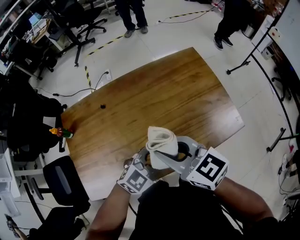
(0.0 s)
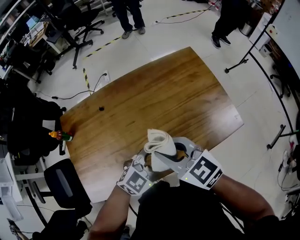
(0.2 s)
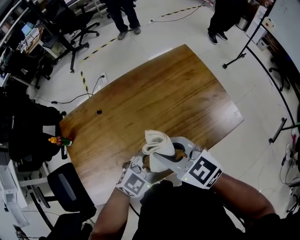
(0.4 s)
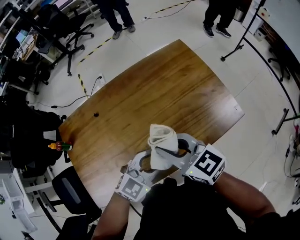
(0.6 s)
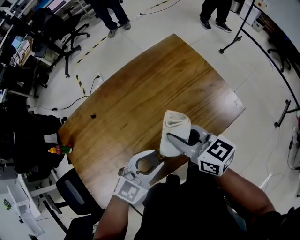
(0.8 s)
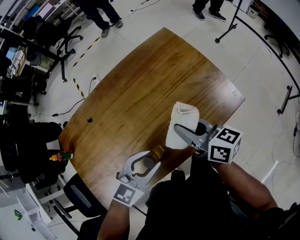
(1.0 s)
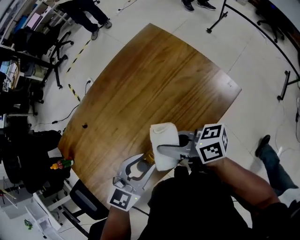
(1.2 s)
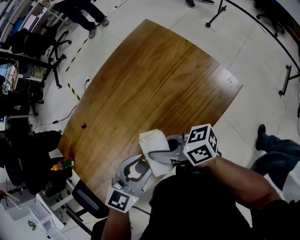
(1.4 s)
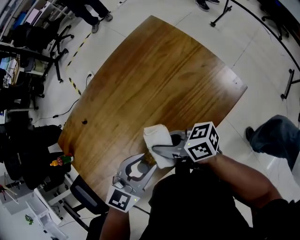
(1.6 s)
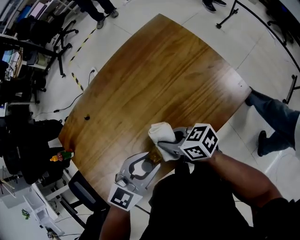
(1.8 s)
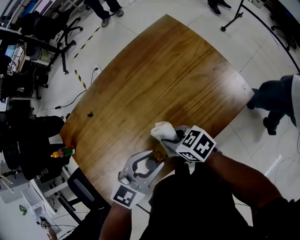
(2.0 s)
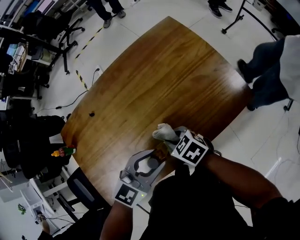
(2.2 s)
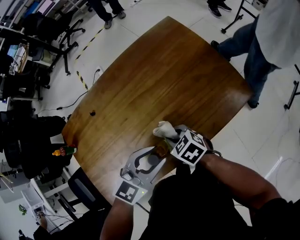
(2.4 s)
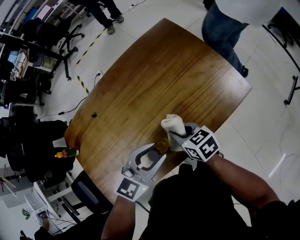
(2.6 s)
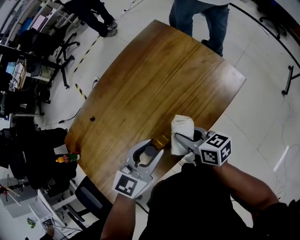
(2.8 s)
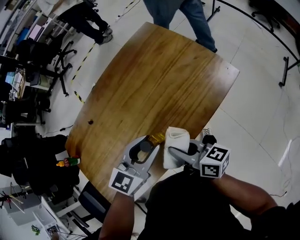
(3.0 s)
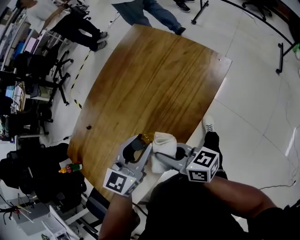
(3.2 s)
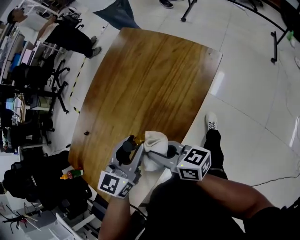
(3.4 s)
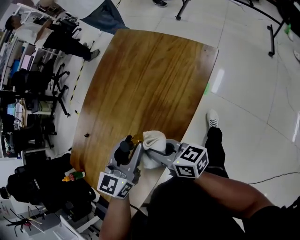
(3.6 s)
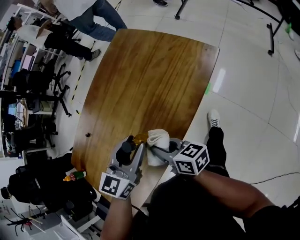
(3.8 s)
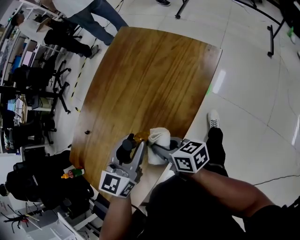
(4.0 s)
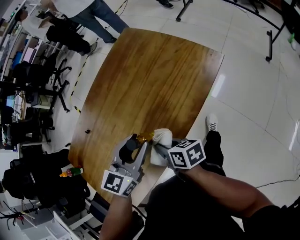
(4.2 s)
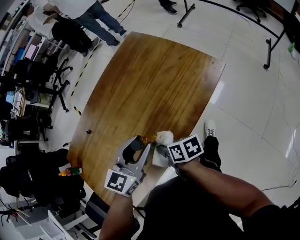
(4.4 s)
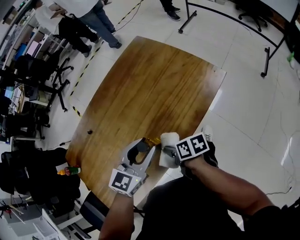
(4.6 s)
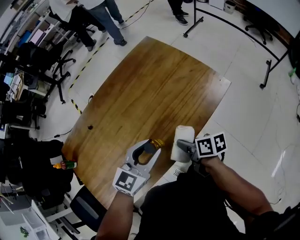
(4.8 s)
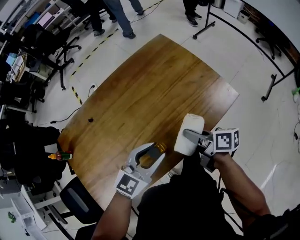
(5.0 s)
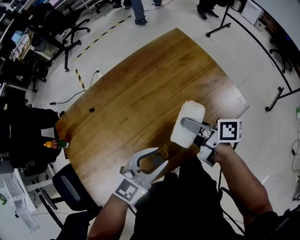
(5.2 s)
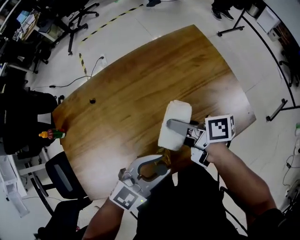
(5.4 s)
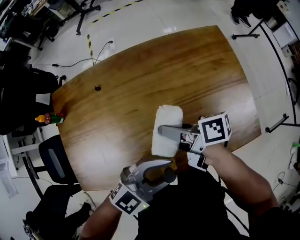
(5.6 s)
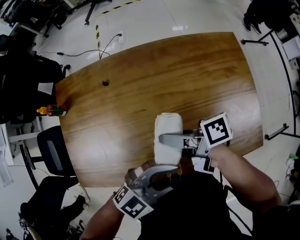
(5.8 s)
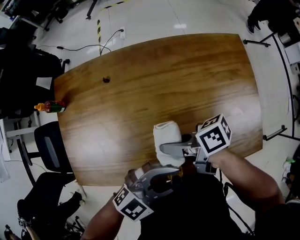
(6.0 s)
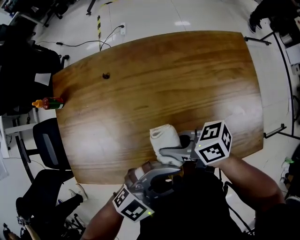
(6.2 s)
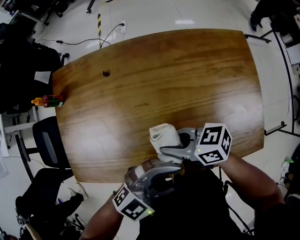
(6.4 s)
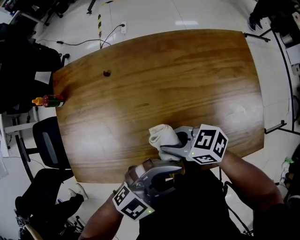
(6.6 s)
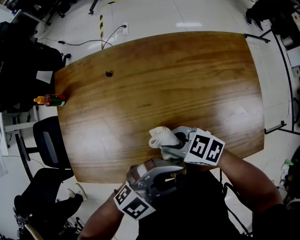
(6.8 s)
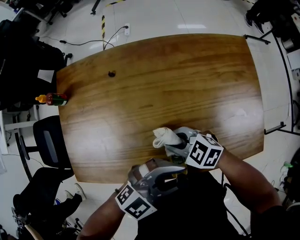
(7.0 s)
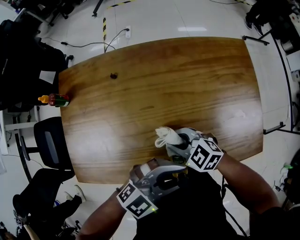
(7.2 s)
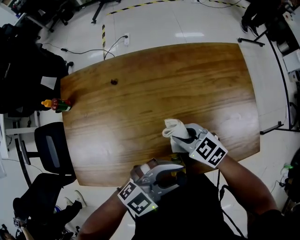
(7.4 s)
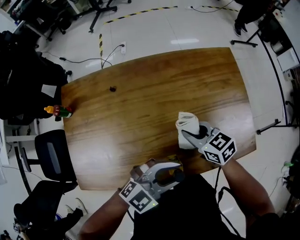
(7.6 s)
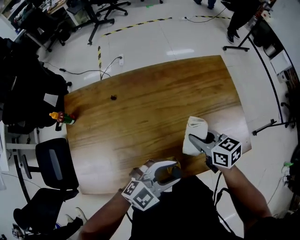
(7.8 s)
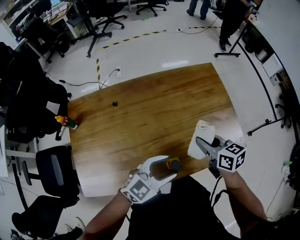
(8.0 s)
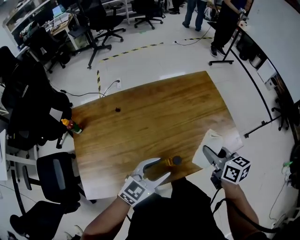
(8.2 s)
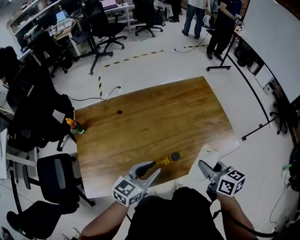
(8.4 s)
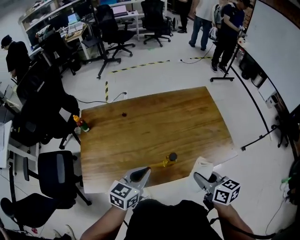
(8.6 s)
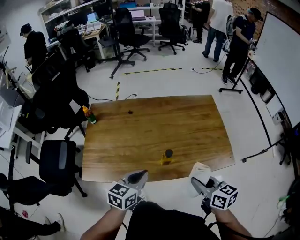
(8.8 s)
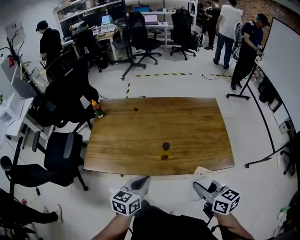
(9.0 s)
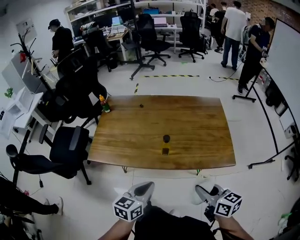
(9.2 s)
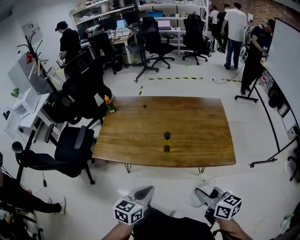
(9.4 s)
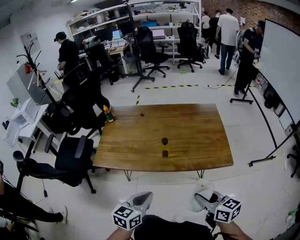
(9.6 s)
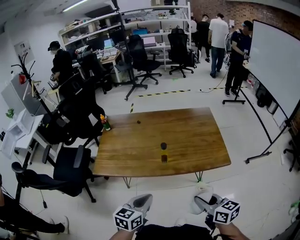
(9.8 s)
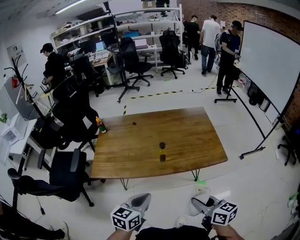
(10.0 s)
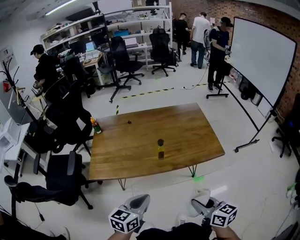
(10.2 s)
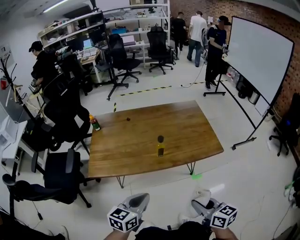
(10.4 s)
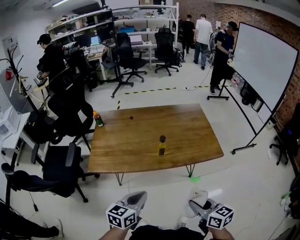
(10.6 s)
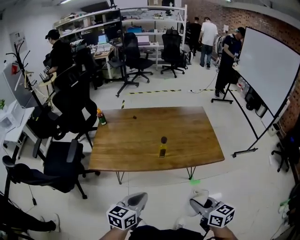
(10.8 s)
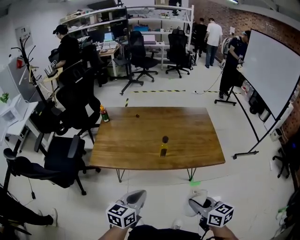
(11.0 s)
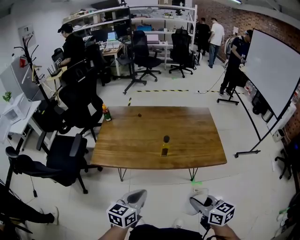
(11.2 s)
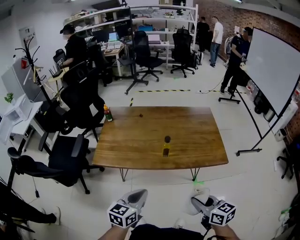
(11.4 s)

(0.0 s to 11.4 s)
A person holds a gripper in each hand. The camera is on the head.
0.0 s - 1.4 s: The right gripper travels downward by some 10 cm, and rotates around the line of its fingers by some 40 degrees, clockwise from behind.
1.4 s - 2.8 s: The right gripper goes about 10 cm downward, and swivels approximately 30 degrees.
2.8 s - 4.2 s: The right gripper moves backward and to the left, approximately 10 cm.
4.2 s - 5.6 s: The right gripper changes place by about 20 cm, and changes its angle by some 40 degrees.
5.6 s - 7.2 s: The right gripper heads downward, covering roughly 10 cm, and twists some 80 degrees counterclockwise, seen from behind.
7.2 s - 8.6 s: The right gripper moves some 25 cm, and changes its angle by roughly 60 degrees. Meanwhile the left gripper ends up some 10 cm from where it was, rotates about 40 degrees, and closes.
8.6 s - 10.0 s: Both grippers travel together backward, approximately 20 cm.

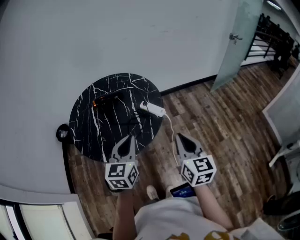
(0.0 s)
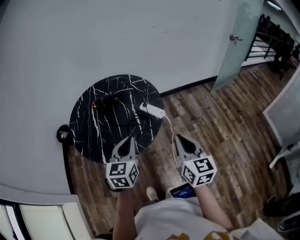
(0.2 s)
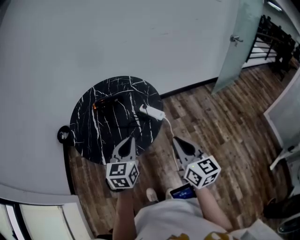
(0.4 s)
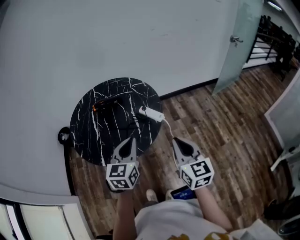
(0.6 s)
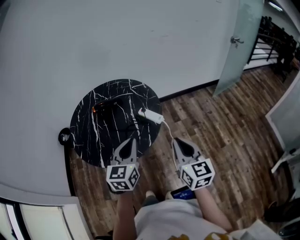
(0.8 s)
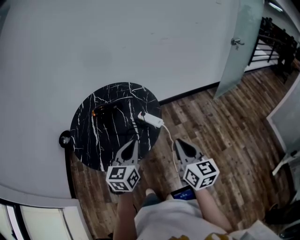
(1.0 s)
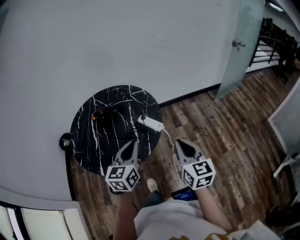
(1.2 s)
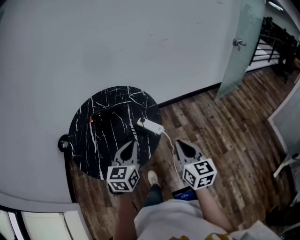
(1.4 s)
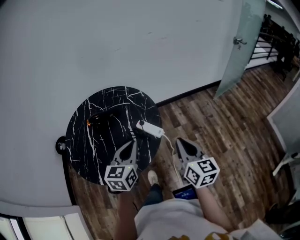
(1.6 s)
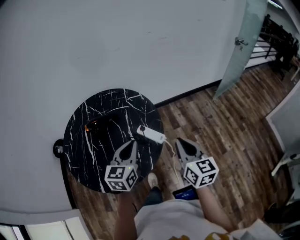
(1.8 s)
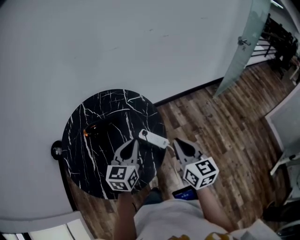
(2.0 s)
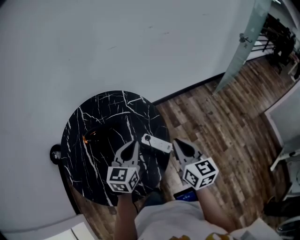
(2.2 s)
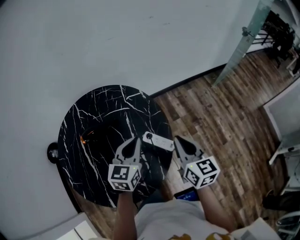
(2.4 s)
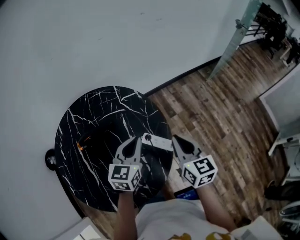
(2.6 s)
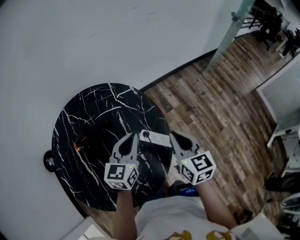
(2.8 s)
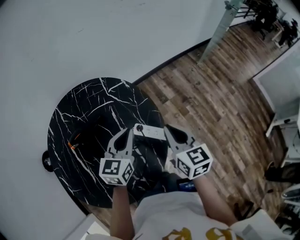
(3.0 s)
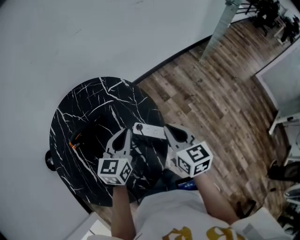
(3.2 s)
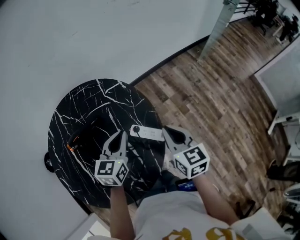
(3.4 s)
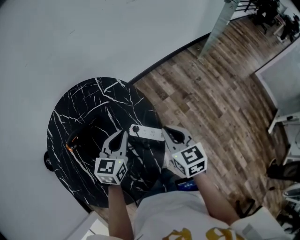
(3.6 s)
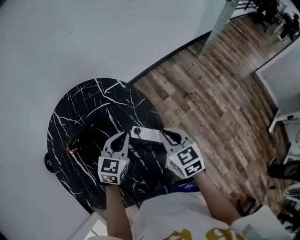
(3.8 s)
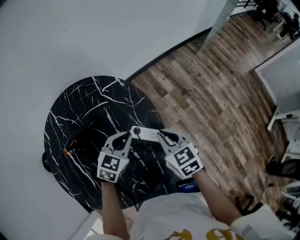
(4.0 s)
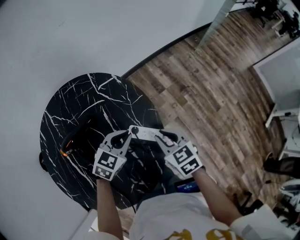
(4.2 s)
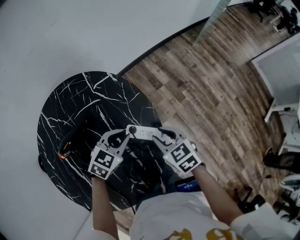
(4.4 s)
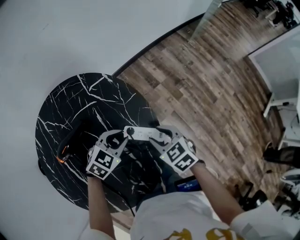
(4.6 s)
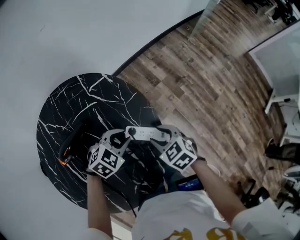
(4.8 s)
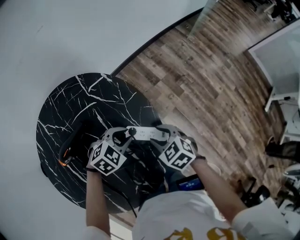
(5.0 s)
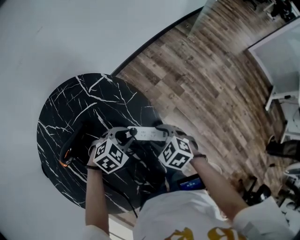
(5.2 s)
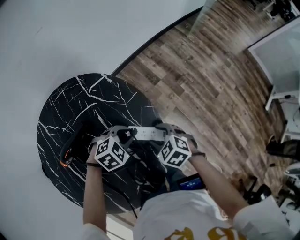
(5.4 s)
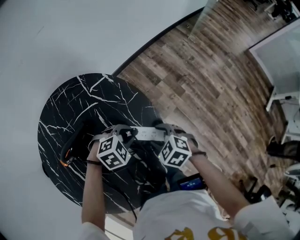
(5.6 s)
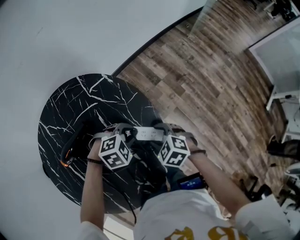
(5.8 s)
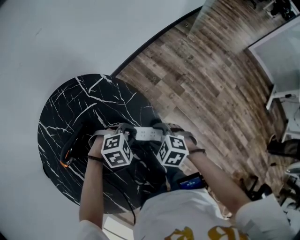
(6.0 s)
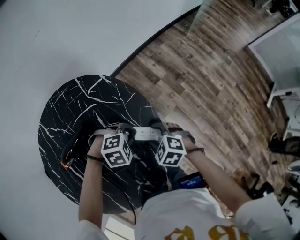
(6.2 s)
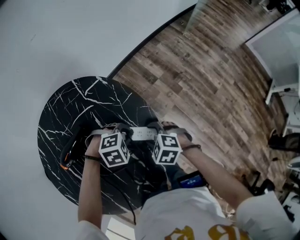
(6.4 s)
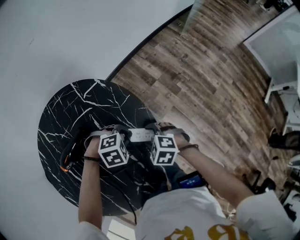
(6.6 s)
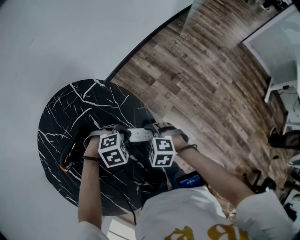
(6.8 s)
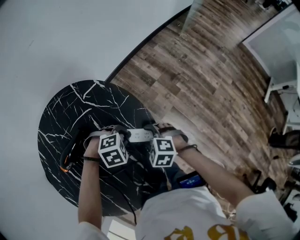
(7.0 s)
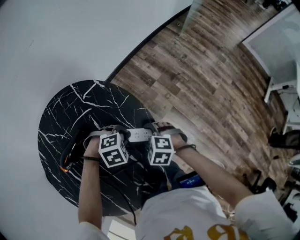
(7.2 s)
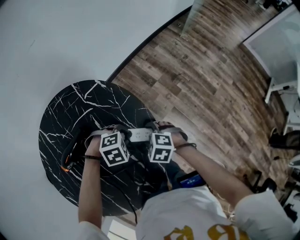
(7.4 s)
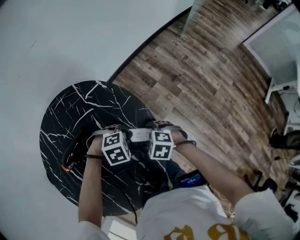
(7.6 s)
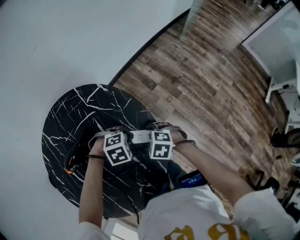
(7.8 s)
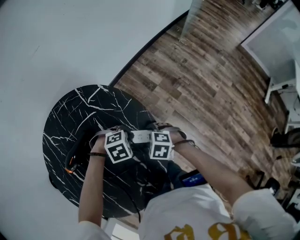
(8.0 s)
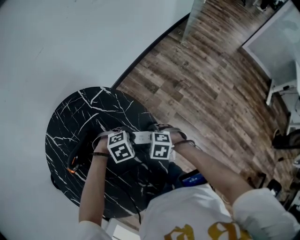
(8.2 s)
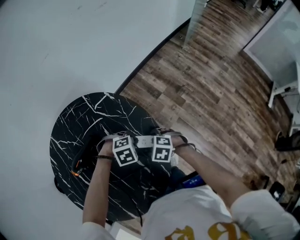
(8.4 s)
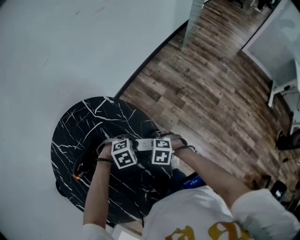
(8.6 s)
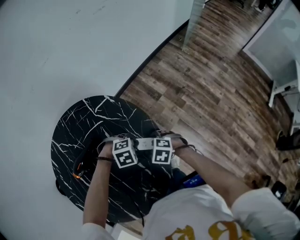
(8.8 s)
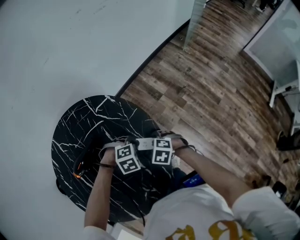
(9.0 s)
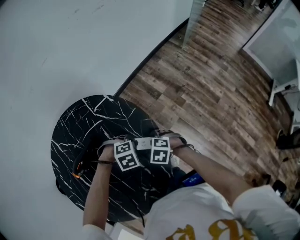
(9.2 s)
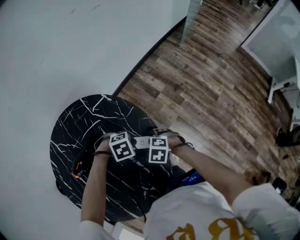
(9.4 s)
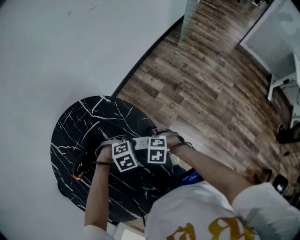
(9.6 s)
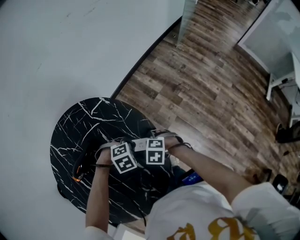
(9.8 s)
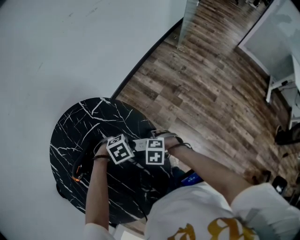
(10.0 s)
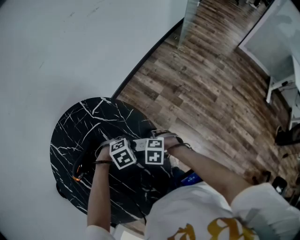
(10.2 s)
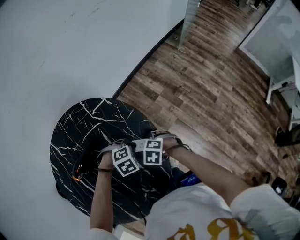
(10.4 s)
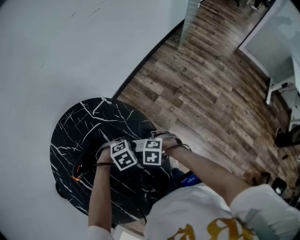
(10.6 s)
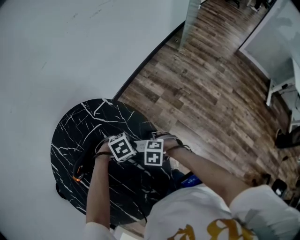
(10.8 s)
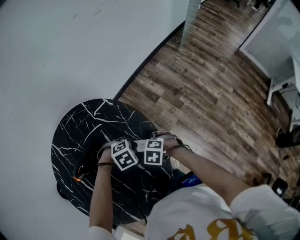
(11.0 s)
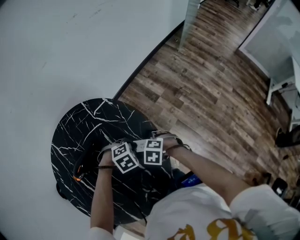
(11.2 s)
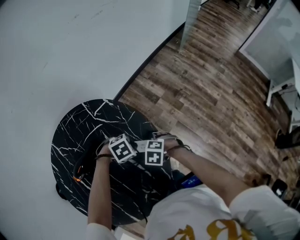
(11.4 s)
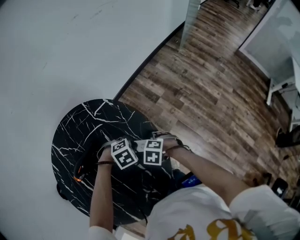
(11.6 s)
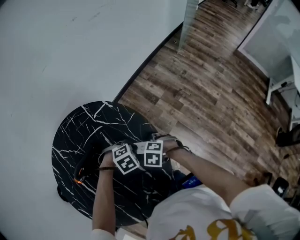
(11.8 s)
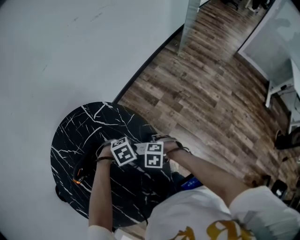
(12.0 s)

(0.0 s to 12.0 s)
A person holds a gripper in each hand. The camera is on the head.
0.0 s - 1.6 s: Both grippers move forward, roughly 10 cm.
1.6 s - 3.0 s: The right gripper moves forward, to the left and downward, some 20 cm. Meanwhile the left gripper moves forward, some 20 cm.
3.0 s - 4.4 s: Both grippers move downward, roughly 10 cm. The left gripper changes its angle by roughly 40 degrees, while the right gripper rotates about 30 degrees, and opens its fingers.
4.4 s - 6.0 s: The grippers both shift downward by some 5 cm. The left gripper rotates approximately 50 degrees; the right gripper changes its angle by some 30 degrees, and opens.
6.0 s - 12.0 s: The grippers stay close to where they were, moving slightly.

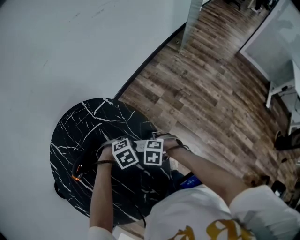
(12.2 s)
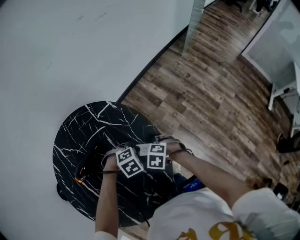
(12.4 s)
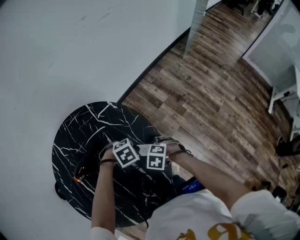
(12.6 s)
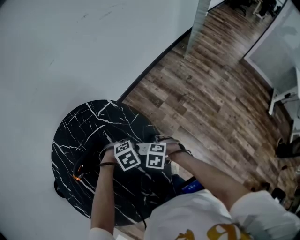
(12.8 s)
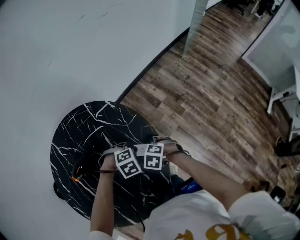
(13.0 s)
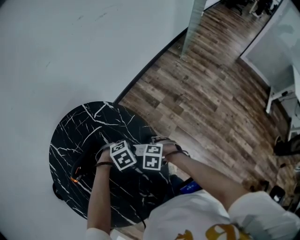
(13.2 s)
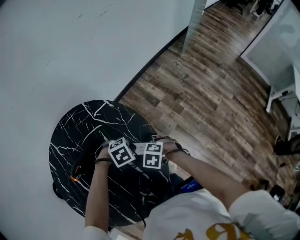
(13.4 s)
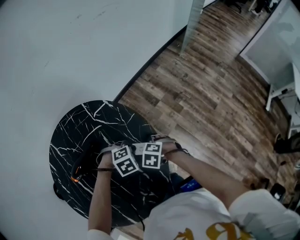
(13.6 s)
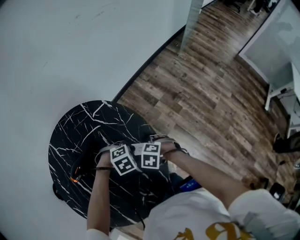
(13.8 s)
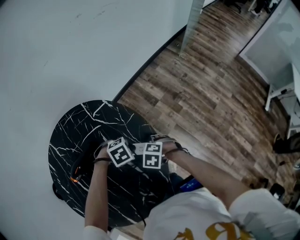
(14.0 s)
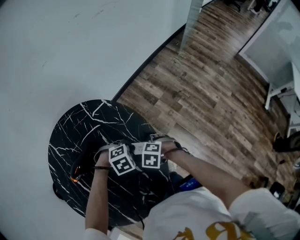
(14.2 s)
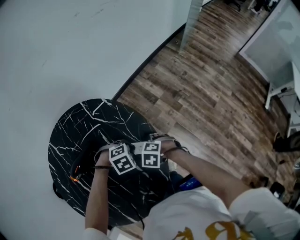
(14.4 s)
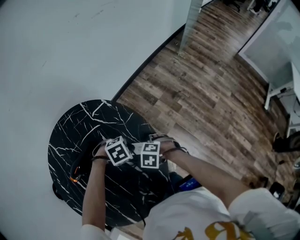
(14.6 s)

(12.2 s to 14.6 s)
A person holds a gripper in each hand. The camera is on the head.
12.2 s - 14.6 s: The grippers make only small movements.
